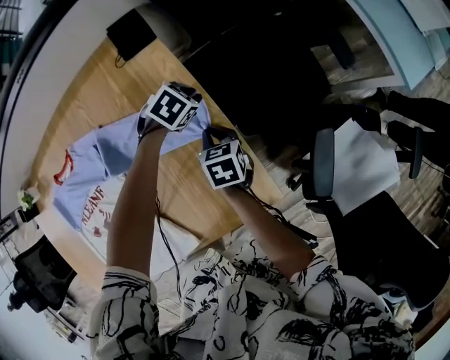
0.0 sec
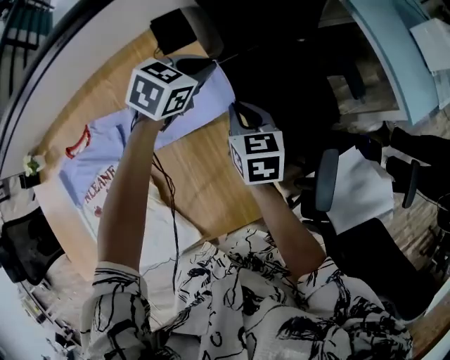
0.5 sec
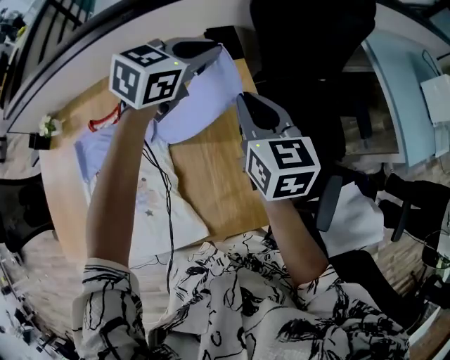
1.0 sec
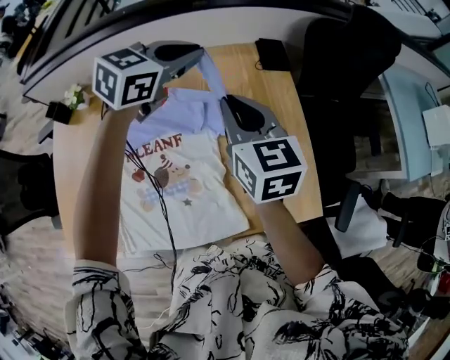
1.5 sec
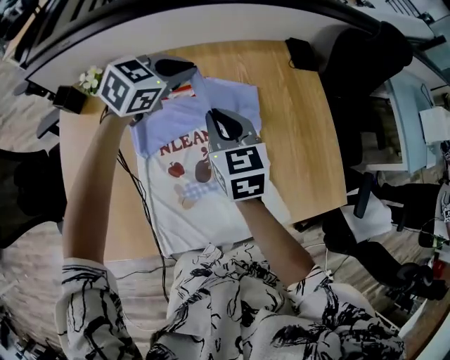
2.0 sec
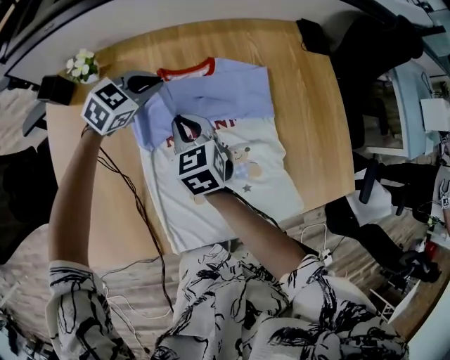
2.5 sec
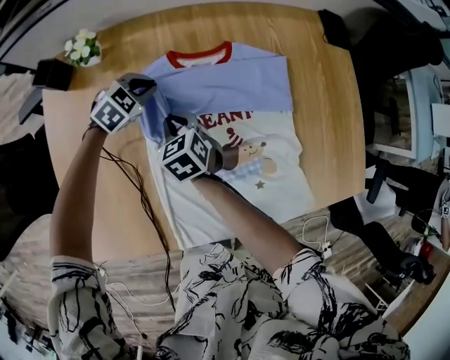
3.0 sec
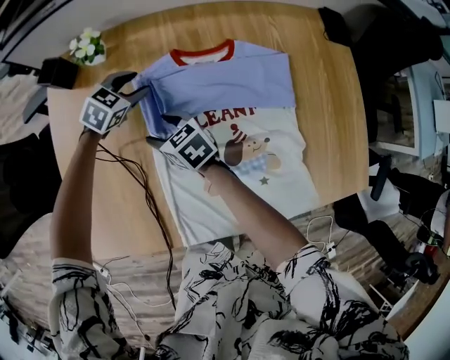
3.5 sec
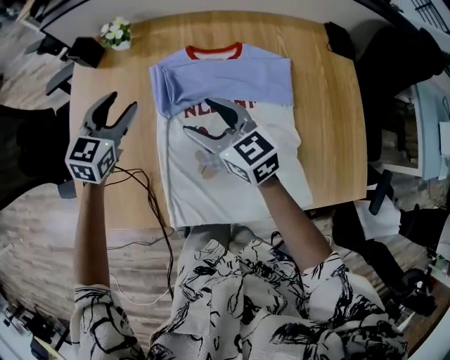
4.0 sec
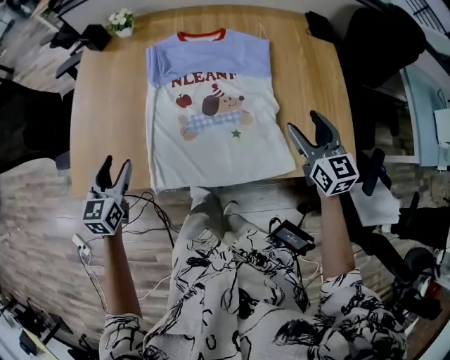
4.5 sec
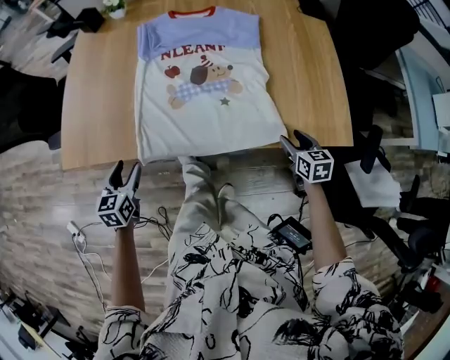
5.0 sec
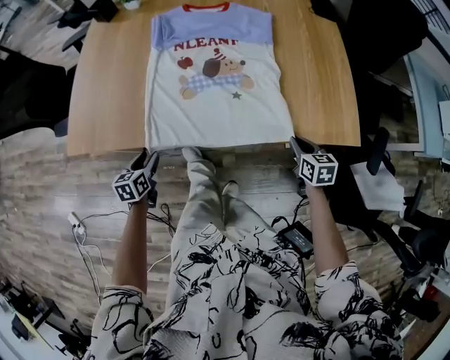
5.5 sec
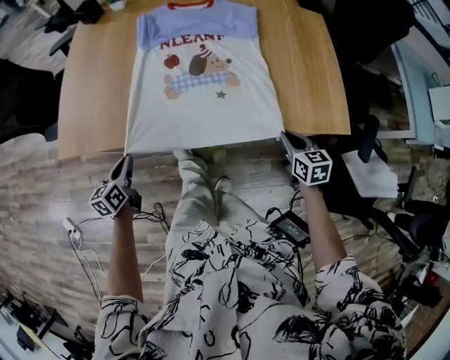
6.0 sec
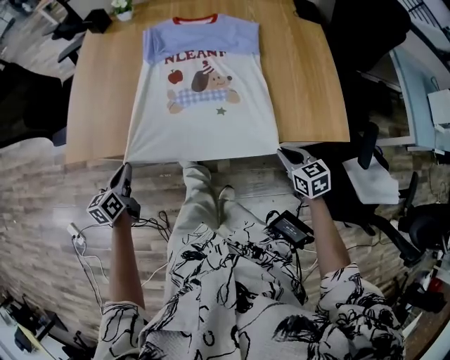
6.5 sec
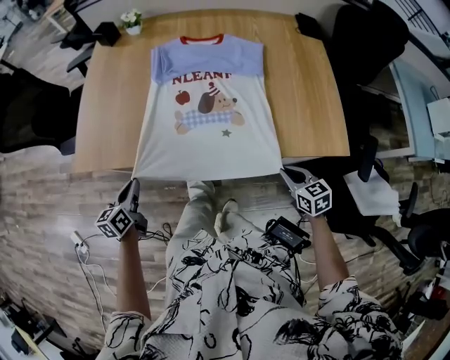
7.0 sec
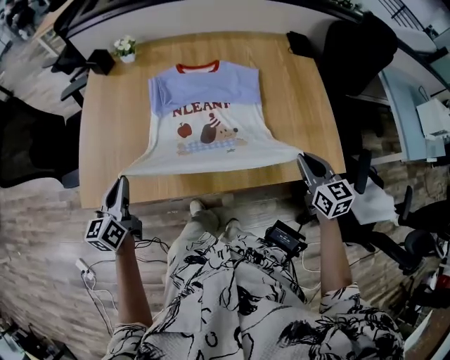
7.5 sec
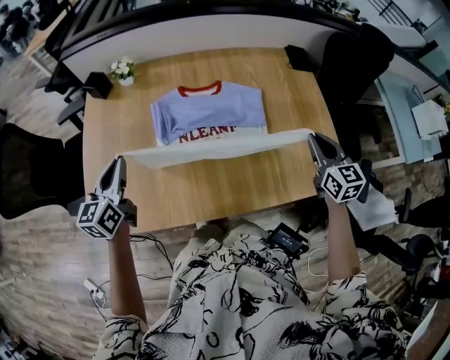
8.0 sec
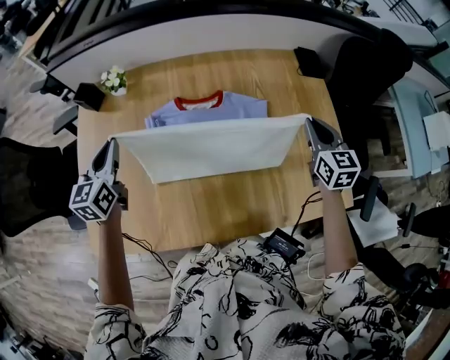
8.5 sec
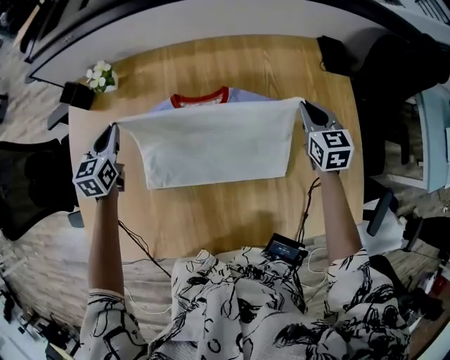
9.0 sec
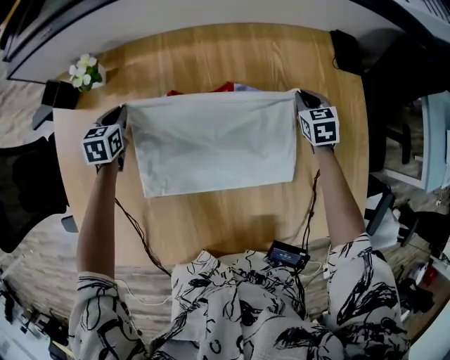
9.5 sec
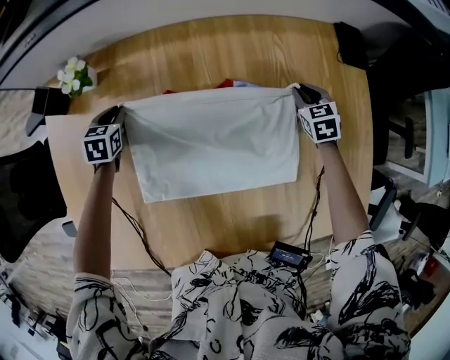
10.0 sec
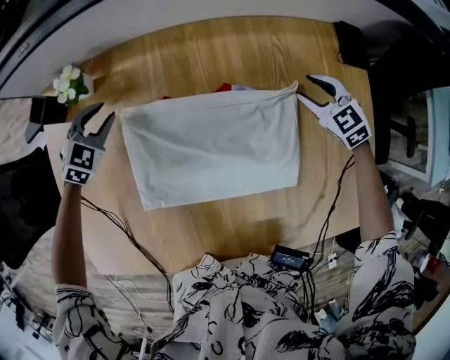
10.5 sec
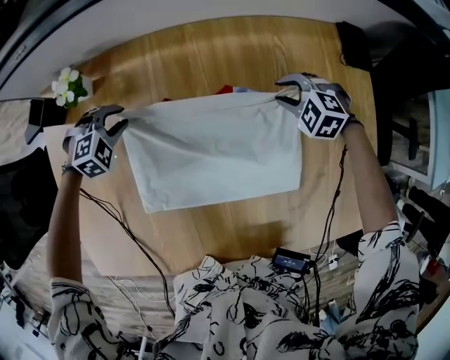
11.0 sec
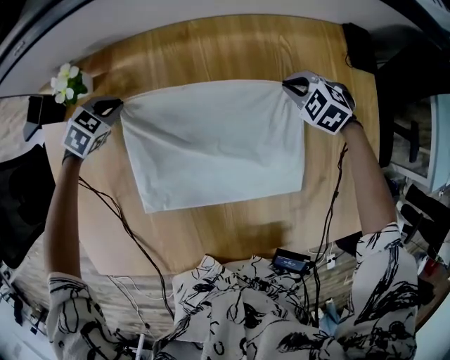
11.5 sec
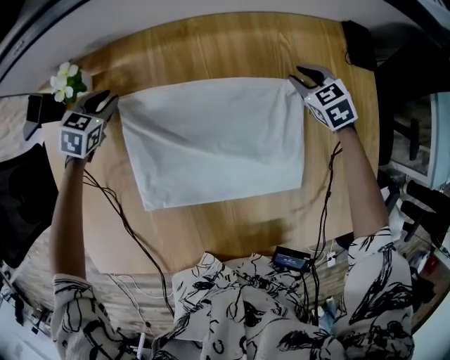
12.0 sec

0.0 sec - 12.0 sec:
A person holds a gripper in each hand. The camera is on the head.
0.0 sec - 2.0 sec: Both grippers are carried to the left and backward, some 50 cm. The two grippers go about 30 cm upward. The left gripper angles its fingers upward, by approximately 40 degrees; the right gripper changes its angle by roughly 40 degrees.
2.0 sec - 4.0 sec: The left gripper changes place by some 30 cm, changes its angle by roughly 40 degrees, and opens up. The right gripper goes downward and returns, about 25 cm each way, rotates about 30 degrees, and opens its fingers.
4.0 sec - 6.0 sec: The right gripper moves backward and to the right, approximately 50 cm, turns by some 30 degrees, and closes its fingers. The left gripper goes roughly 40 cm backward, twists roughly 40 degrees counterclockwise, seen from behind, and closes up.
6.0 sec - 8.0 sec: The left gripper is displaced forward and upward by approximately 35 cm, and turns by about 30 degrees. The right gripper is displaced upward and forward by some 30 cm, and changes its angle by approximately 20 degrees.
8.0 sec - 10.0 sec: Both grippers move forward and downward, approximately 50 cm. The left gripper tips its fingers downward by approximately 40 degrees, while the right gripper swivels some 30 degrees.
10.0 sec - 12.0 sec: The right gripper ends up approximately 5 cm from where it was; the left gripper changes place by roughly 5 cm, and rotates some 20 degrees.

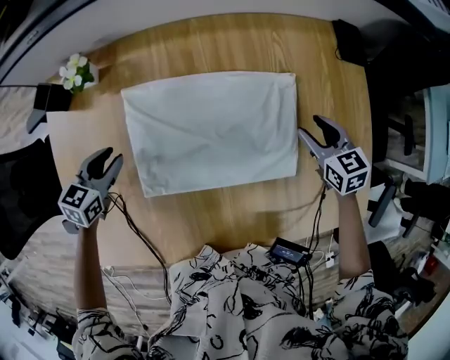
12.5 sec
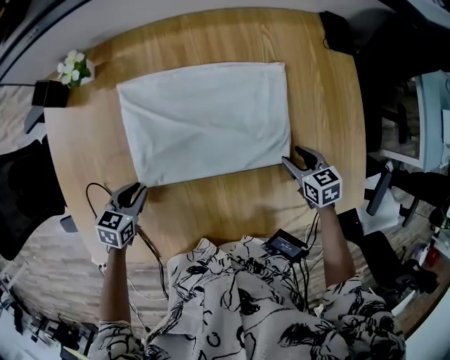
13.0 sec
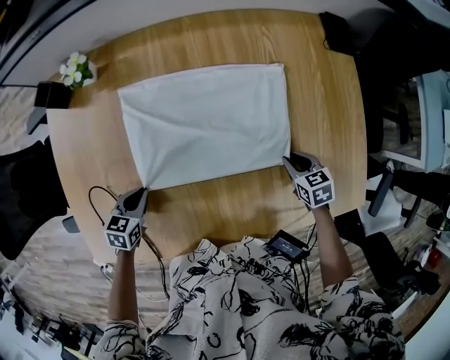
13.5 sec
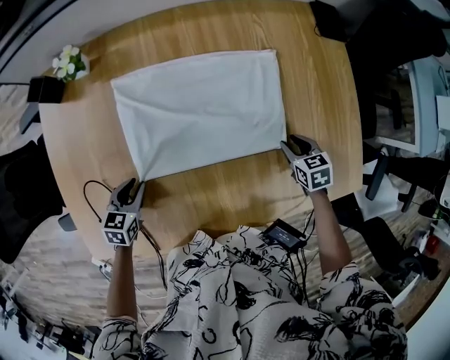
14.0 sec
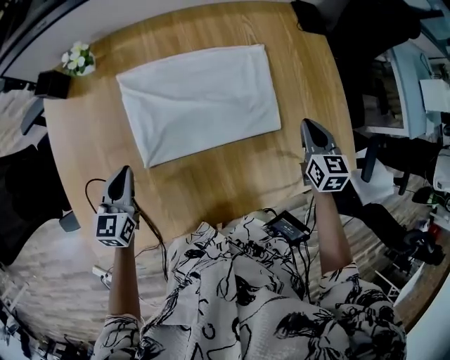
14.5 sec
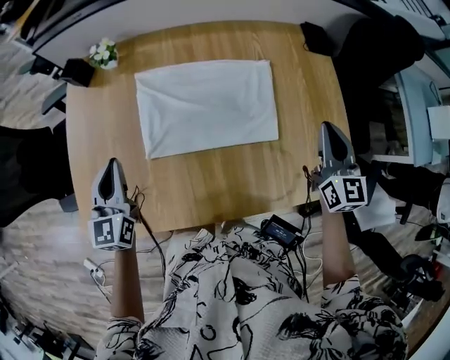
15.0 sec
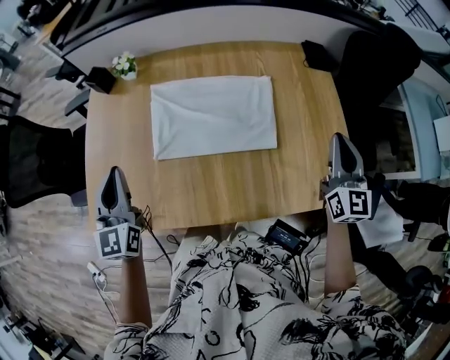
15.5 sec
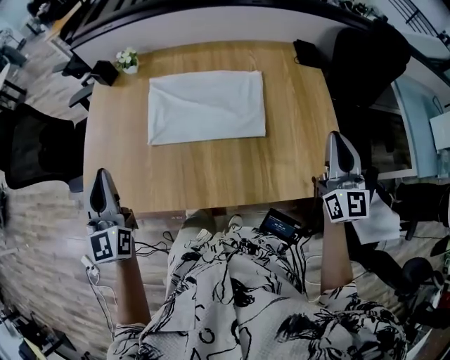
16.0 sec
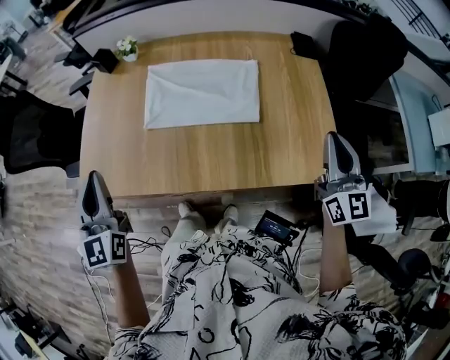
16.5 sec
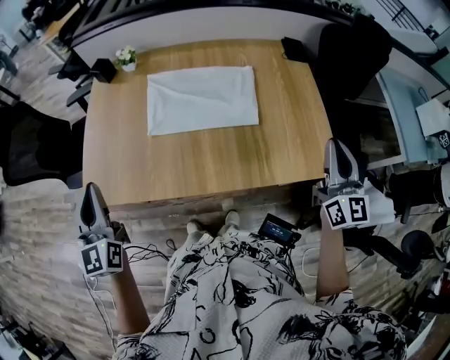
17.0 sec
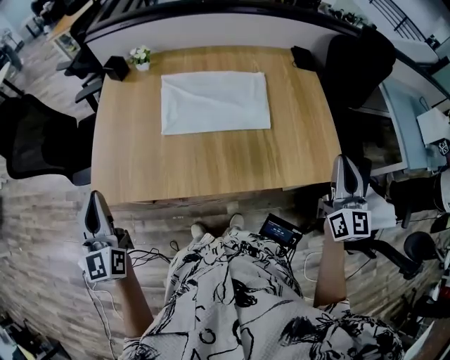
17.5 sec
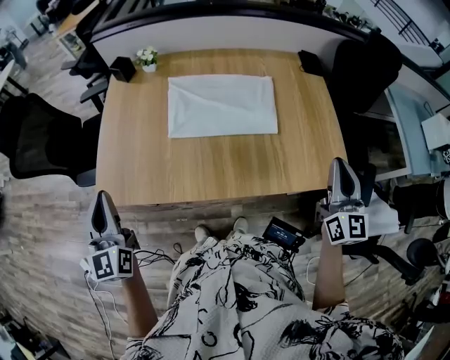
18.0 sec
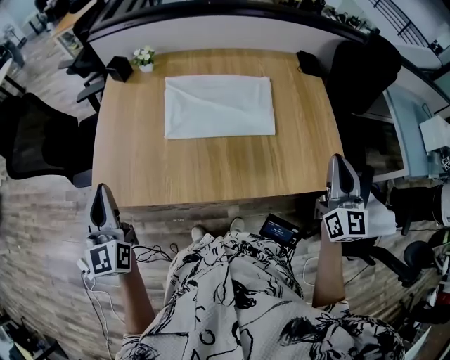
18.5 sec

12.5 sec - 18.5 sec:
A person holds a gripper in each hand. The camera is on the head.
12.5 sec - 14.5 sec: The right gripper moves backward and upward, about 15 cm, rotates some 30 degrees, and closes up. The left gripper heads backward, covering about 15 cm, turns by approximately 20 degrees, and closes up.
14.5 sec - 16.5 sec: The two grippers go about 30 cm upward and backward. The left gripper swivels approximately 40 degrees; the right gripper angles its fingers upward, by some 40 degrees.
16.5 sec - 18.5 sec: Both grippers travel together to the left, some 10 cm.

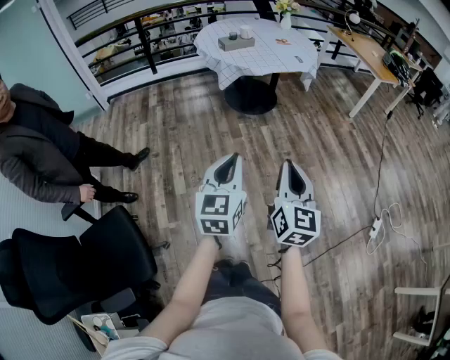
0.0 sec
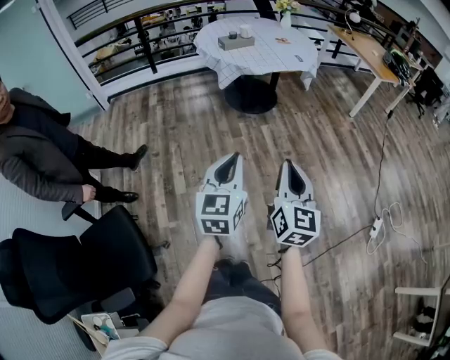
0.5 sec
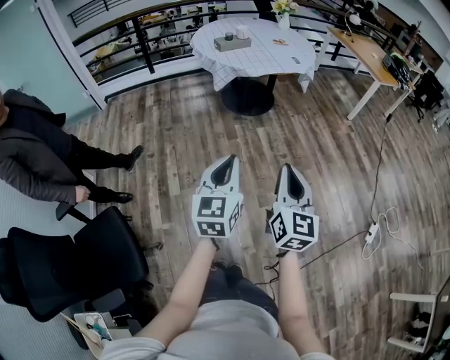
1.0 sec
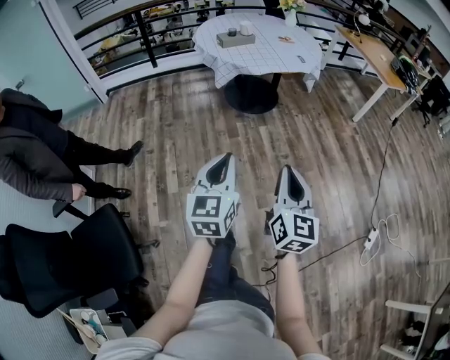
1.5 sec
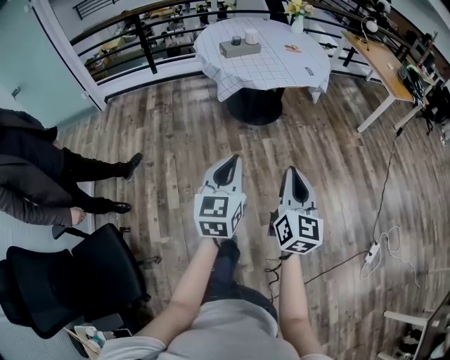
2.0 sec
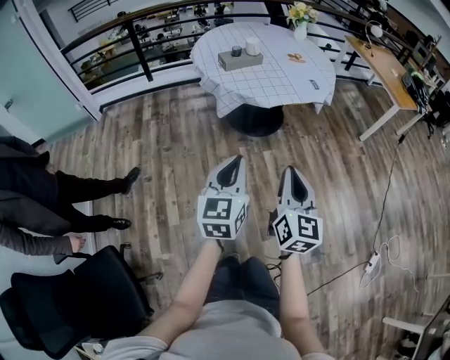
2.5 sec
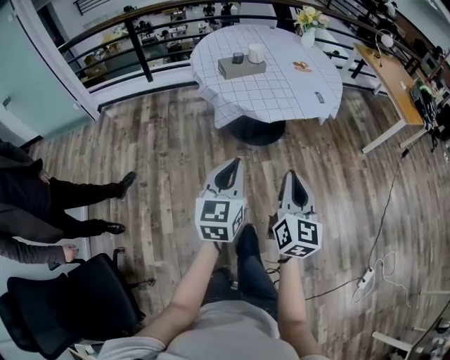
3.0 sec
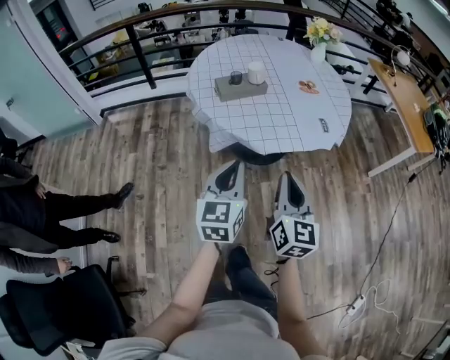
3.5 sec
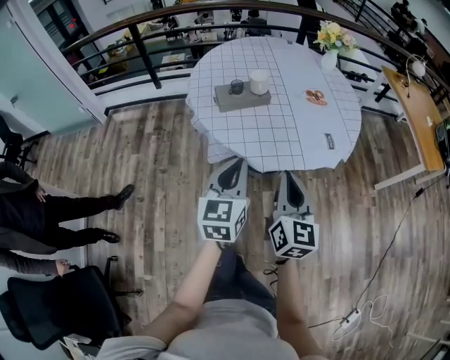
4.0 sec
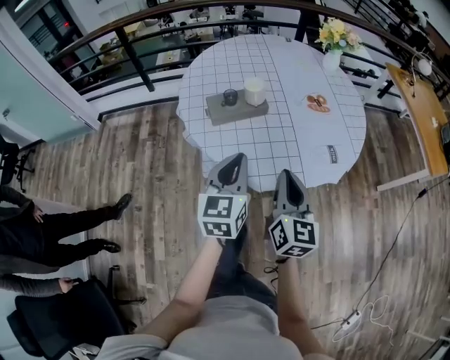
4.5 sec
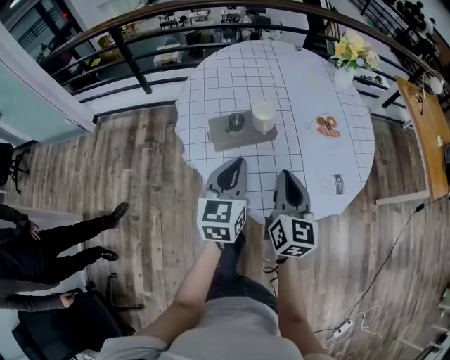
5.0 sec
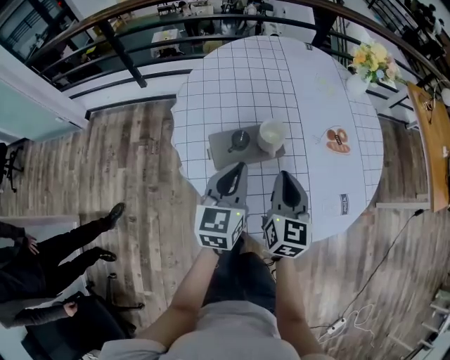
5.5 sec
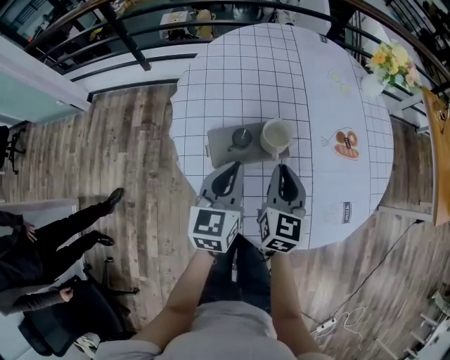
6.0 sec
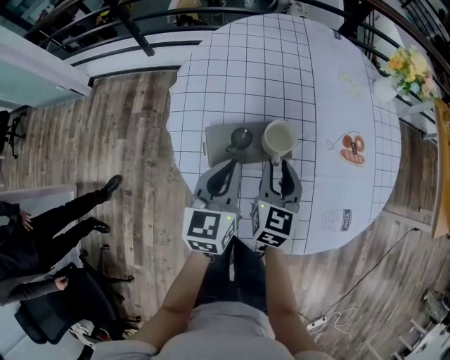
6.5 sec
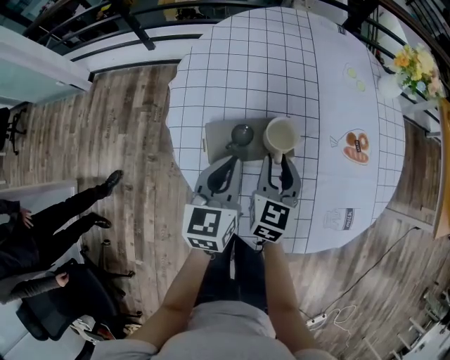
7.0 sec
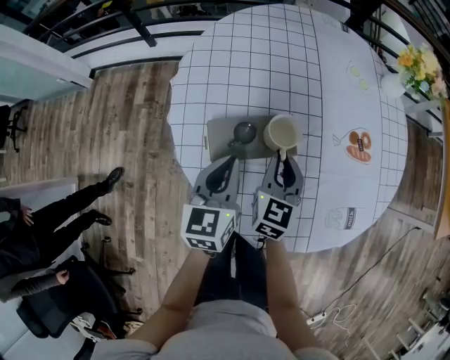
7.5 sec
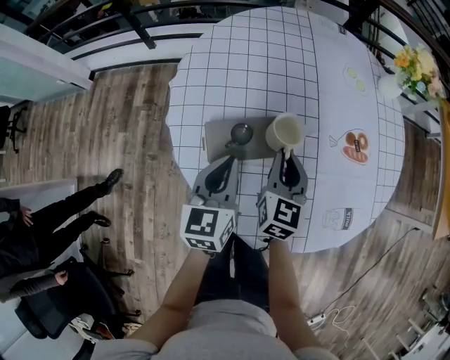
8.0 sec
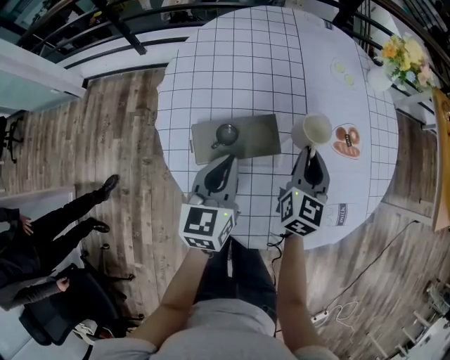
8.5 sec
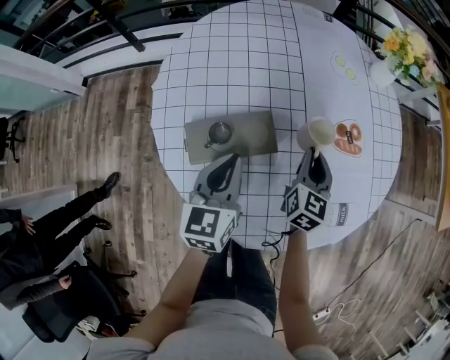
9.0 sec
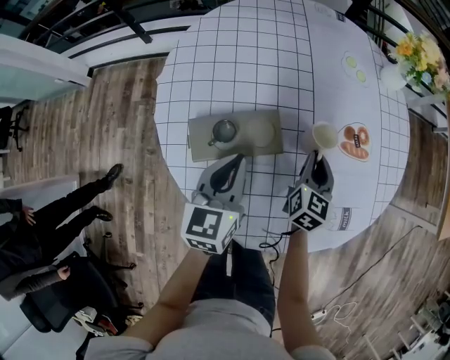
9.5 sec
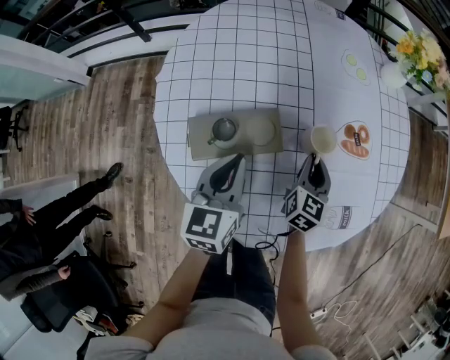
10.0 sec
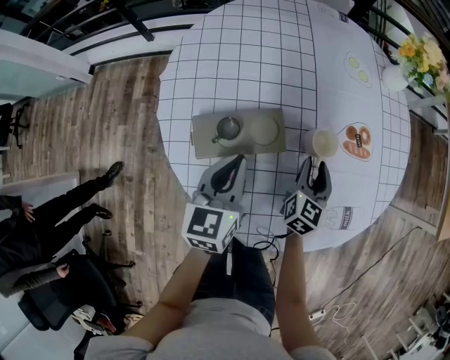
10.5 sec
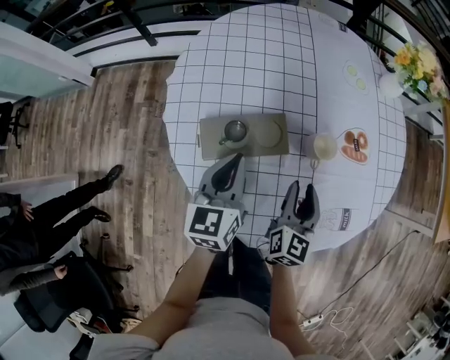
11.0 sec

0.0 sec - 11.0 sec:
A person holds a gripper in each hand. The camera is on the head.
0.0 sec - 2.0 sec: The two grippers go roughly 20 cm forward.
2.0 sec - 3.5 sec: The pair of grippers is taken forward, roughly 40 cm.
3.5 sec - 5.5 sec: The two grippers travel together, forward, roughly 40 cm.
5.5 sec - 7.5 sec: The left gripper heads downward, covering some 5 cm. Meanwhile the right gripper travels forward and downward by approximately 10 cm.
7.5 sec - 9.0 sec: The right gripper shifts about 15 cm to the right. The left gripper heads to the right, covering some 5 cm.
9.0 sec - 11.0 sec: The right gripper shifts roughly 10 cm backward, and opens up.
